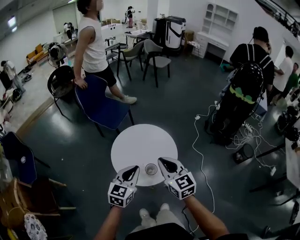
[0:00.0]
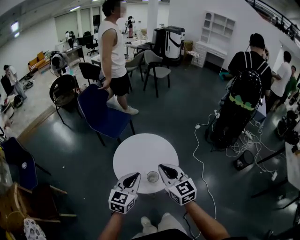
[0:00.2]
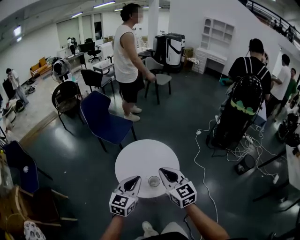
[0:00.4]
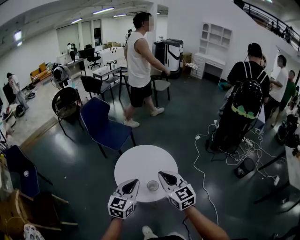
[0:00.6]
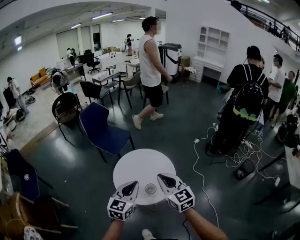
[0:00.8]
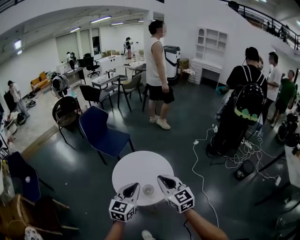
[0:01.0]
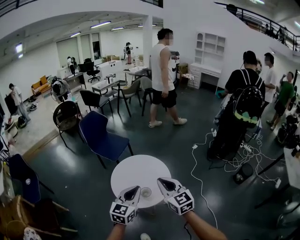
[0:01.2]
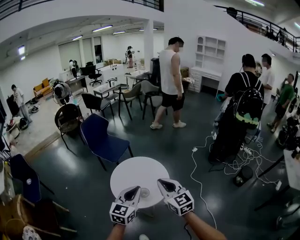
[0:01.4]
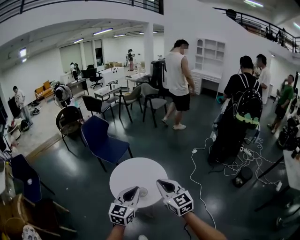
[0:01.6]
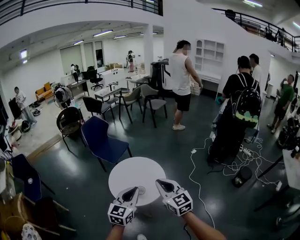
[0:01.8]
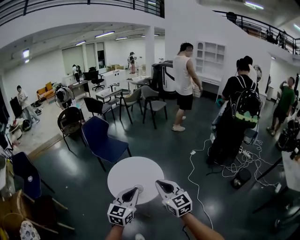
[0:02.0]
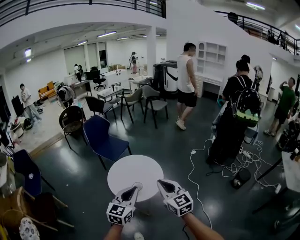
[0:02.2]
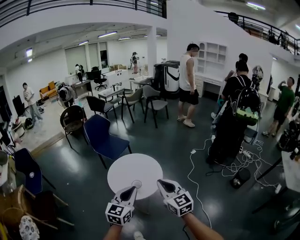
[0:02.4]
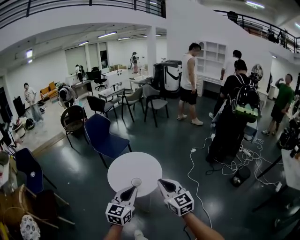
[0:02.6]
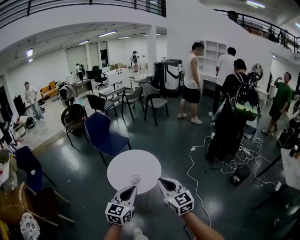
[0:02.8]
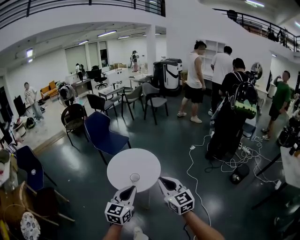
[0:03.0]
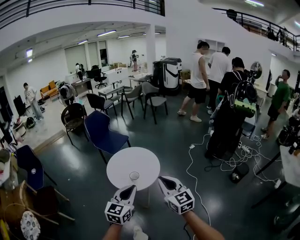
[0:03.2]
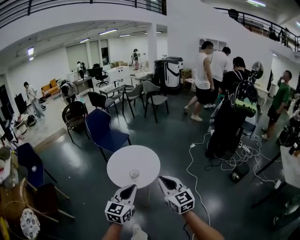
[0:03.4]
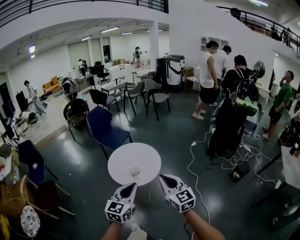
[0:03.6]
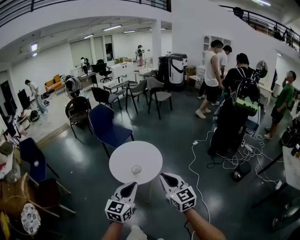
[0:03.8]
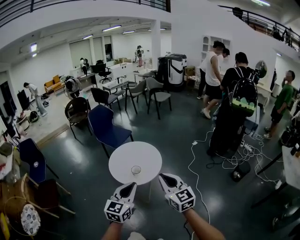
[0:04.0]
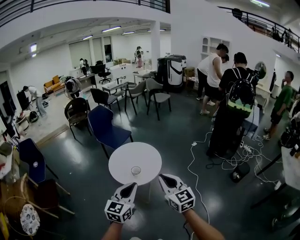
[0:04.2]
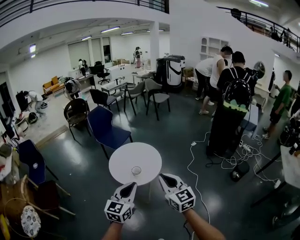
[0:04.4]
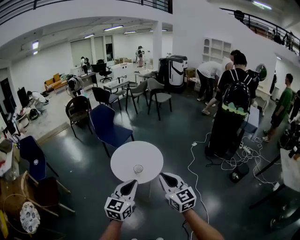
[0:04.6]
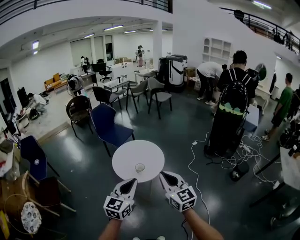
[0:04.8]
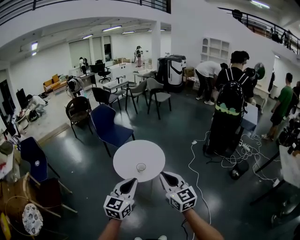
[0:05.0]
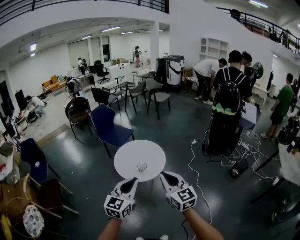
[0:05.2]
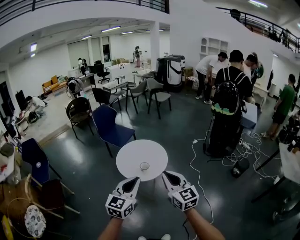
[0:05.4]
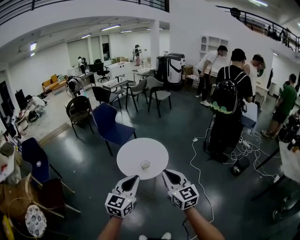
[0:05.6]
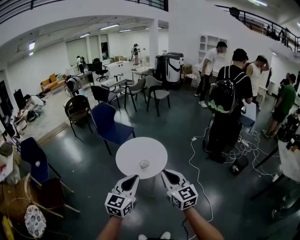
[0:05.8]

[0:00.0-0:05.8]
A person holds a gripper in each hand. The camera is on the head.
0:00.0 to 0:01.4: The left gripper heads upward, backward and to the right, covering some 20 cm, while the right gripper shifts about 20 cm backward, upward and to the right.
0:01.4 to 0:02.8: The right gripper is displaced backward and to the right by roughly 20 cm; the left gripper heads backward, covering about 20 cm.
0:02.8 to 0:04.4: The two grippers go some 5 cm backward.
0:04.4 to 0:05.8: The right gripper heads to the left and backward, covering approximately 10 cm; the left gripper heads to the left, covering roughly 10 cm.

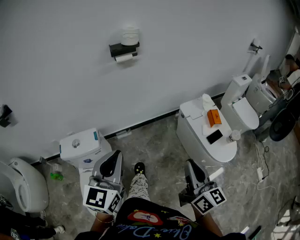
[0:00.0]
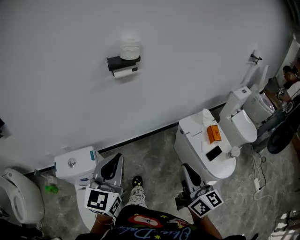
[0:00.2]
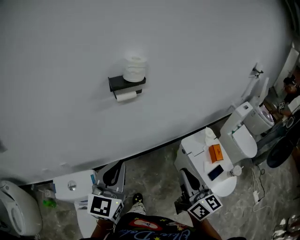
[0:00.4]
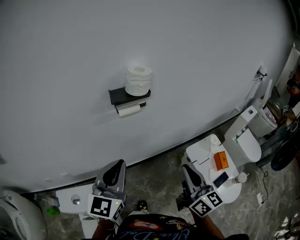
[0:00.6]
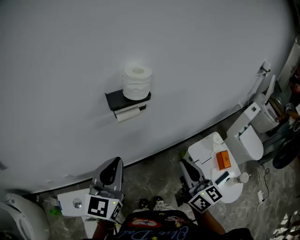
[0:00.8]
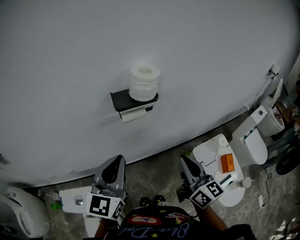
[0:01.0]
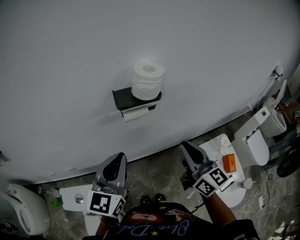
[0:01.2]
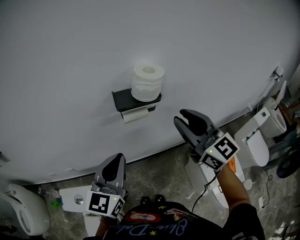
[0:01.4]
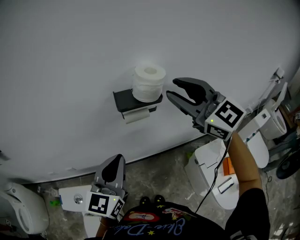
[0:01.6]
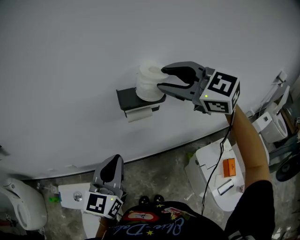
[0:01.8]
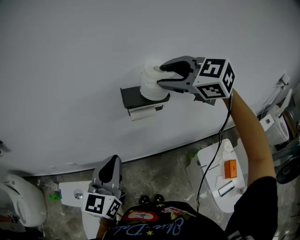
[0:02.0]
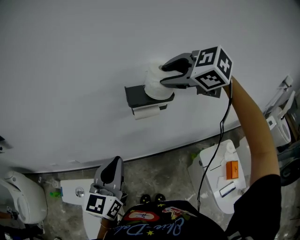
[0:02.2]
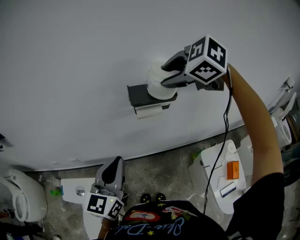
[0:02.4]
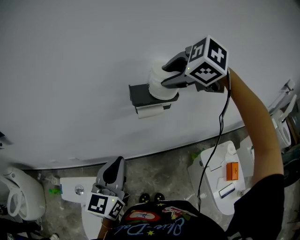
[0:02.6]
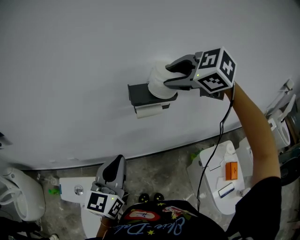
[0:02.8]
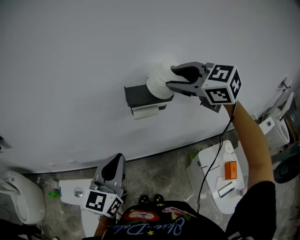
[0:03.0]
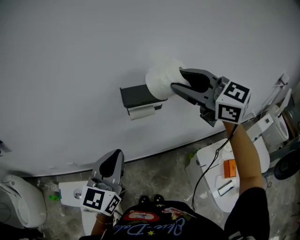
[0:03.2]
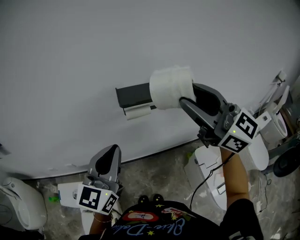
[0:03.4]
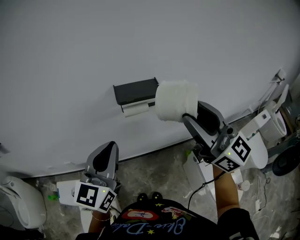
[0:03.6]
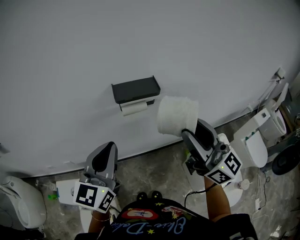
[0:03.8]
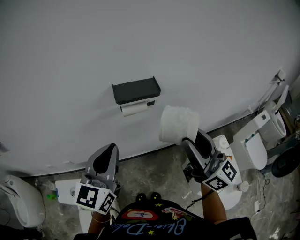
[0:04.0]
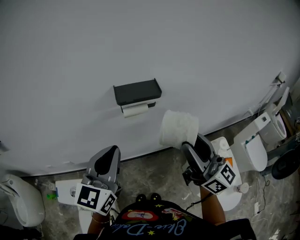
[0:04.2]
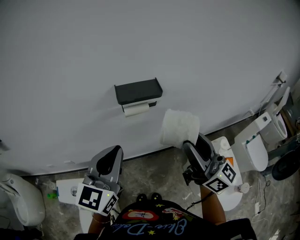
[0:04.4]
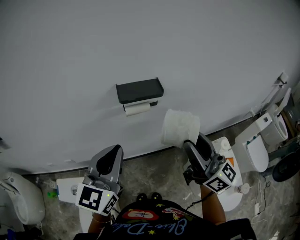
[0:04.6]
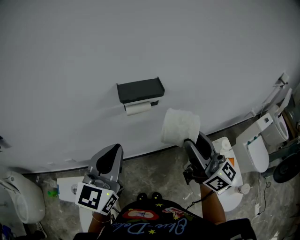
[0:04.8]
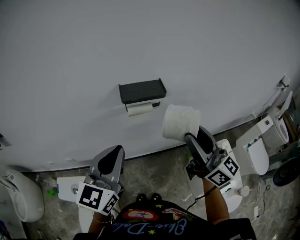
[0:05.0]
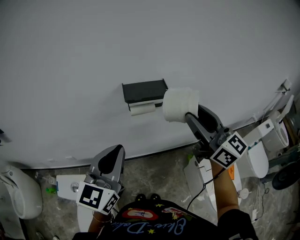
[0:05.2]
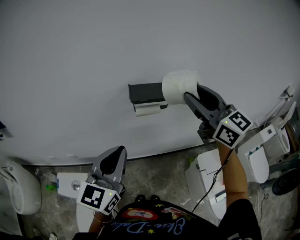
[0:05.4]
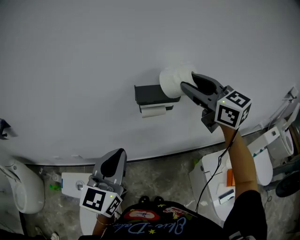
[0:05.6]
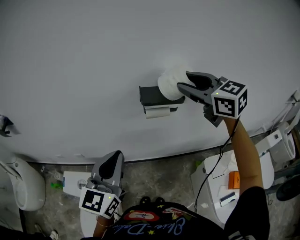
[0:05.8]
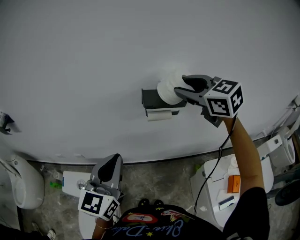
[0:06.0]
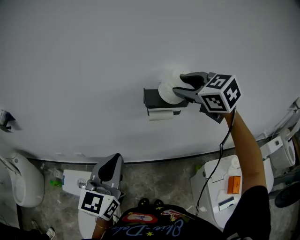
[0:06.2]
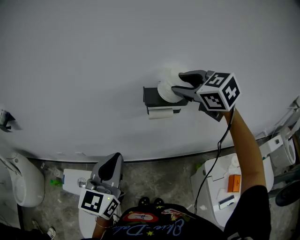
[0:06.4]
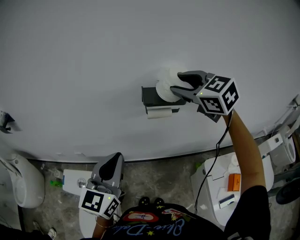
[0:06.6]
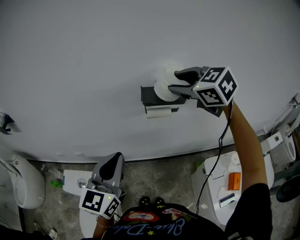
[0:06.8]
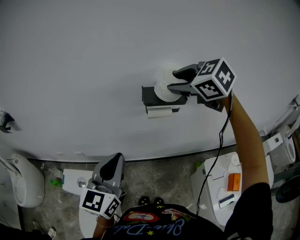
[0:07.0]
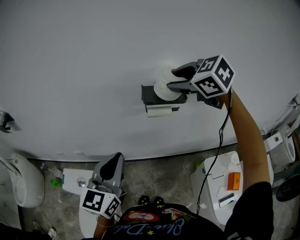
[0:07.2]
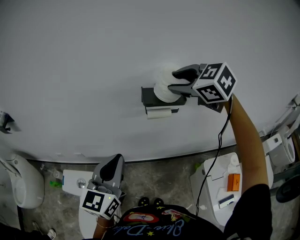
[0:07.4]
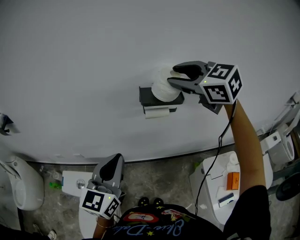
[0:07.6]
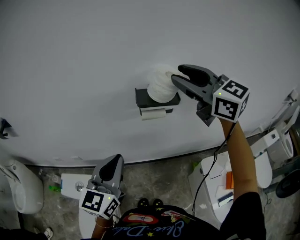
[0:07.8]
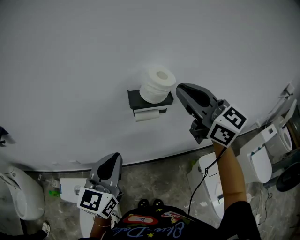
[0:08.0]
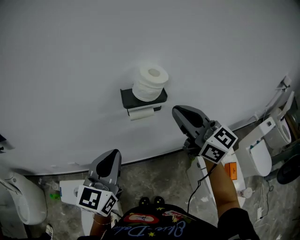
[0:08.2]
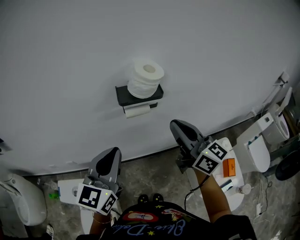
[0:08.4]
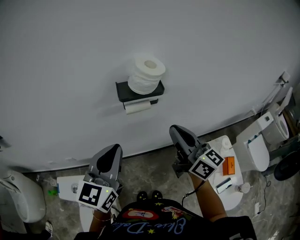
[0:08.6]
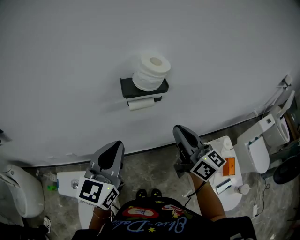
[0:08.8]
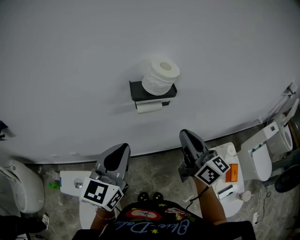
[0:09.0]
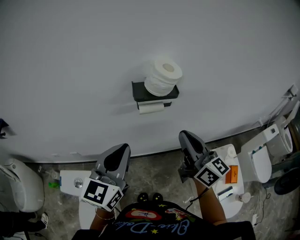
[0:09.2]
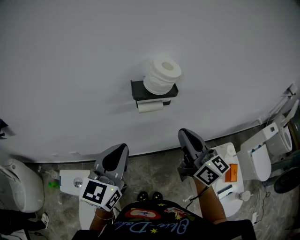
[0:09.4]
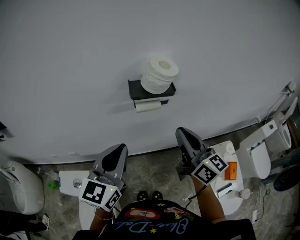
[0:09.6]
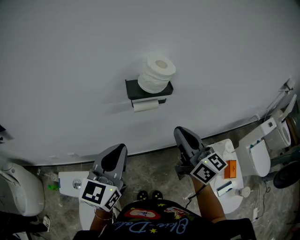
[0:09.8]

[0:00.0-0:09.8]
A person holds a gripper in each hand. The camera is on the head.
0:00.0 to 0:01.4: Both grippers move forward, about 50 cm. The right gripper turns by some 40 degrees.
0:01.4 to 0:02.8: The right gripper travels forward and to the left by some 15 cm, points its fingers about 50 degrees further downward, and opens its fingers.
0:02.8 to 0:04.2: The right gripper shifts approximately 20 cm backward, and angles its fingers upward, by about 60 degrees; the left gripper shifts by some 5 cm.
0:04.2 to 0:05.6: The right gripper is displaced forward and upward by some 20 cm, and rotates approximately 30 degrees.
0:05.6 to 0:07.0: The right gripper moves to the left and forward, some 10 cm, and tilts its fingers about 40 degrees downward.
0:07.0 to 0:08.4: The left gripper goes some 5 cm to the right, while the right gripper moves backward, downward and to the right, some 15 cm, points its fingers approximately 50 degrees further upward, and closes its fingers.
0:08.4 to 0:09.8: The grippers make only small movements.

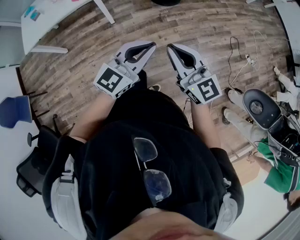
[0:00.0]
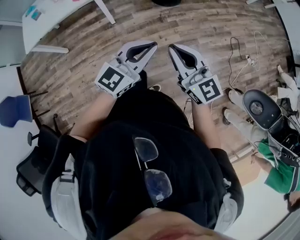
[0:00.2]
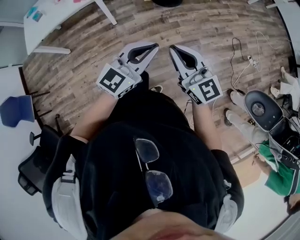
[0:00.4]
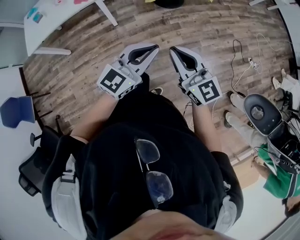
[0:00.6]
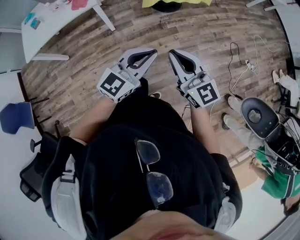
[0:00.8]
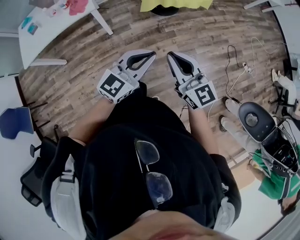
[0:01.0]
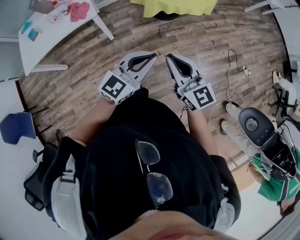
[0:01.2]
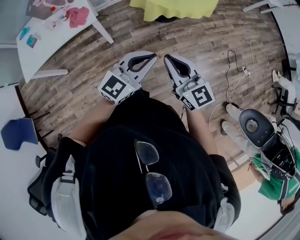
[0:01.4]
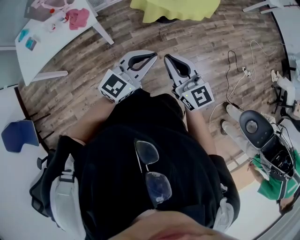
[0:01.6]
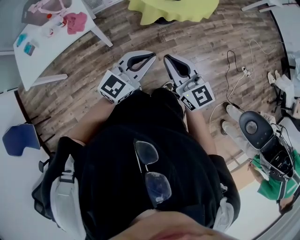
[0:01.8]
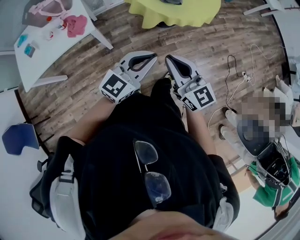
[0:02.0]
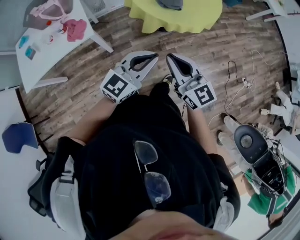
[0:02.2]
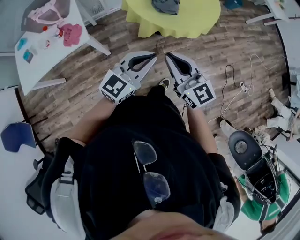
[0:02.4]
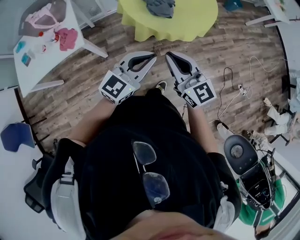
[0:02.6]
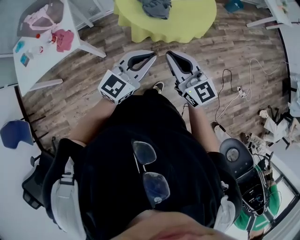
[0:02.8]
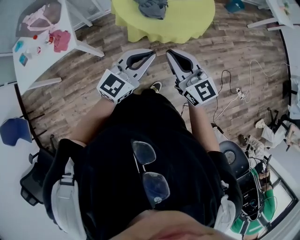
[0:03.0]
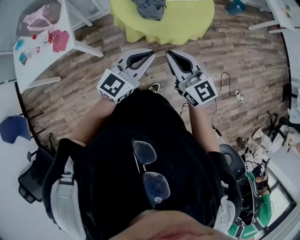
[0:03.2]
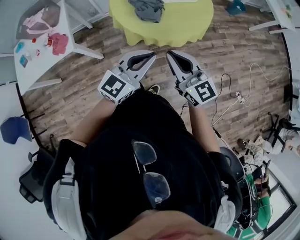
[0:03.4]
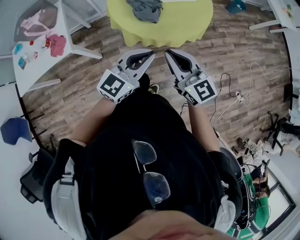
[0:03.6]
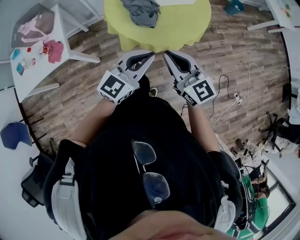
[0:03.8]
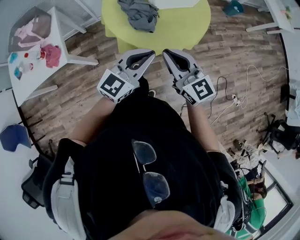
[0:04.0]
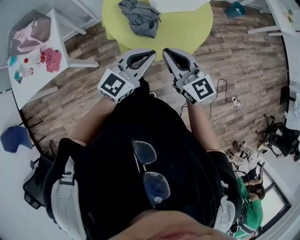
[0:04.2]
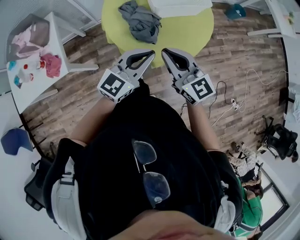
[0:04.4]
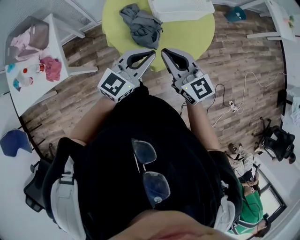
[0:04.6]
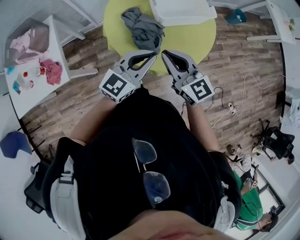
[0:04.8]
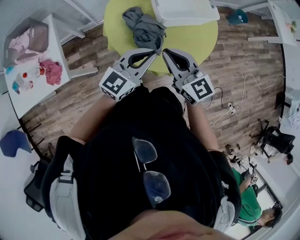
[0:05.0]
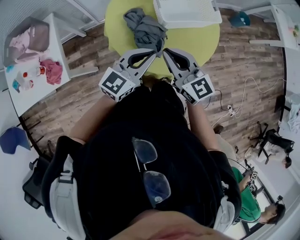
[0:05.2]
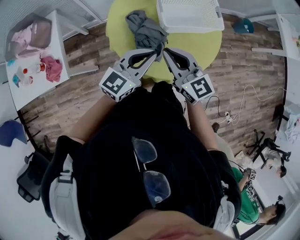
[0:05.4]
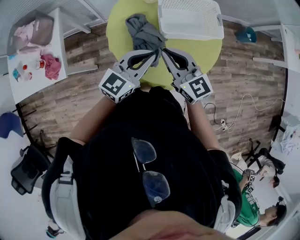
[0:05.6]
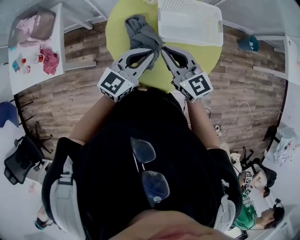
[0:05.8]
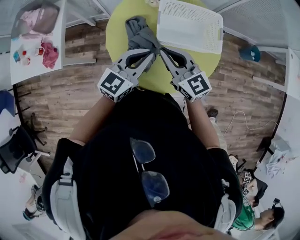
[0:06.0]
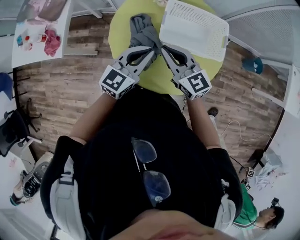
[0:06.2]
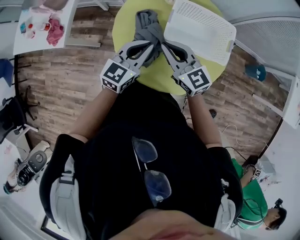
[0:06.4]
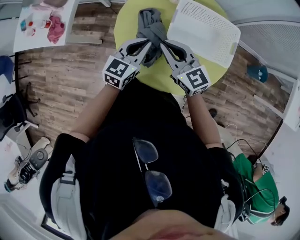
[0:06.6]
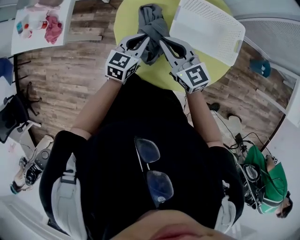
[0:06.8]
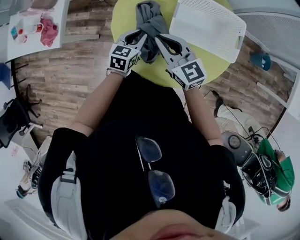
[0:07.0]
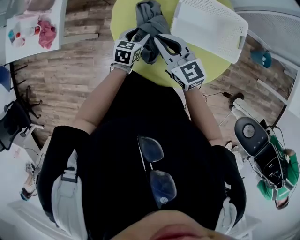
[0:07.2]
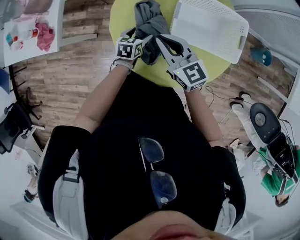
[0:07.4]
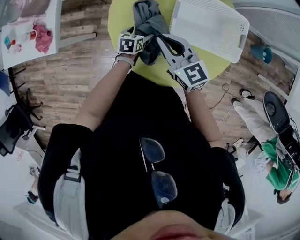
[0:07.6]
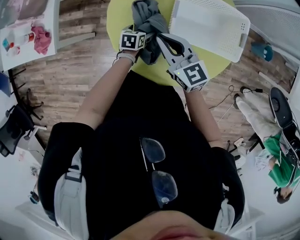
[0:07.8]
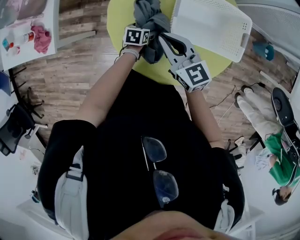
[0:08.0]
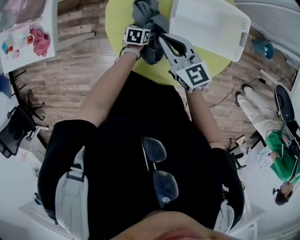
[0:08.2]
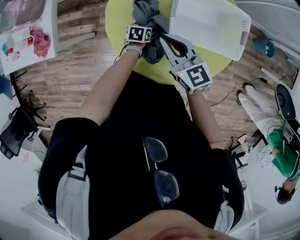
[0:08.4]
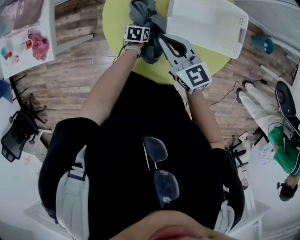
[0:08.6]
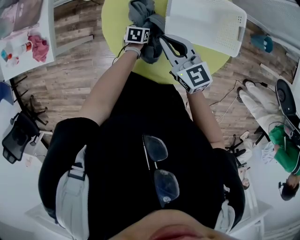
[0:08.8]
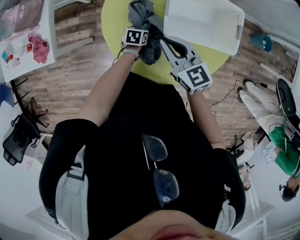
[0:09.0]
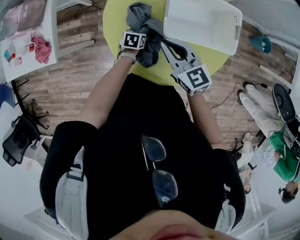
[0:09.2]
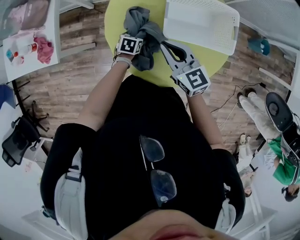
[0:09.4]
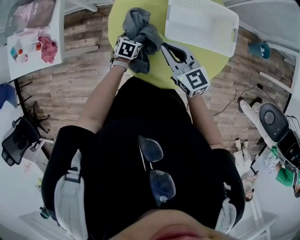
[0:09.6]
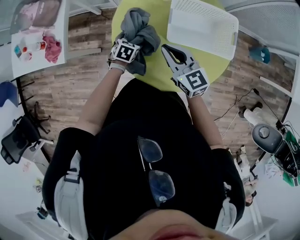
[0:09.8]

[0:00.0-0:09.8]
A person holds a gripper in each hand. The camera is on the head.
0:00.0 to 0:01.4: Both grippers travel together forward, roughly 20 cm.
0:01.4 to 0:02.8: Both grippers travel together forward and to the right, roughly 25 cm.
0:02.8 to 0:04.2: The grippers both shift forward by approximately 20 cm.
0:04.2 to 0:05.6: Both grippers travel together forward, roughly 20 cm.
0:05.6 to 0:07.0: The right gripper ends up about 10 cm from where it was, and changes its angle by roughly 20 degrees. Meanwhile the left gripper is displaced downward by approximately 20 cm, and swivels some 40 degrees.
0:07.0 to 0:08.4: The left gripper goes about 20 cm downward, rotates some 30 degrees, and opens its fingers.
0:08.4 to 0:09.8: The left gripper heads upward and to the left, covering some 10 cm, and swivels about 20 degrees.
